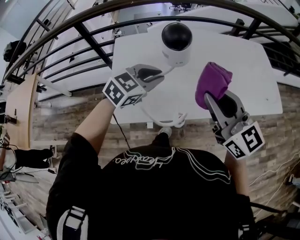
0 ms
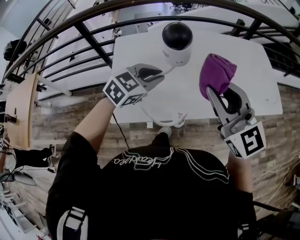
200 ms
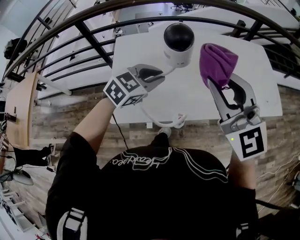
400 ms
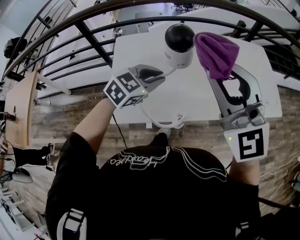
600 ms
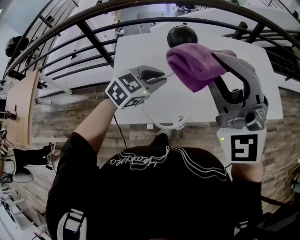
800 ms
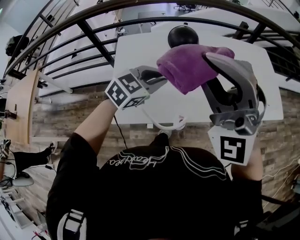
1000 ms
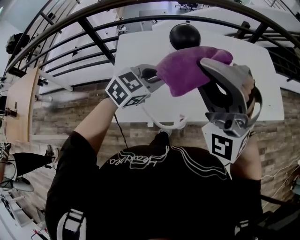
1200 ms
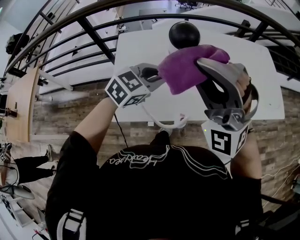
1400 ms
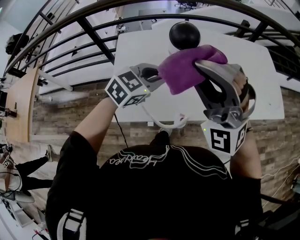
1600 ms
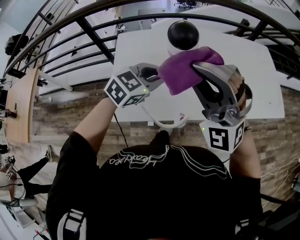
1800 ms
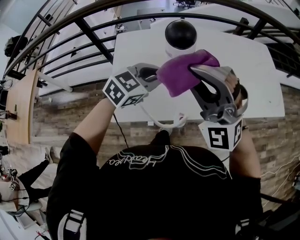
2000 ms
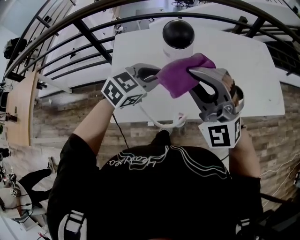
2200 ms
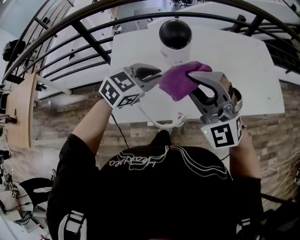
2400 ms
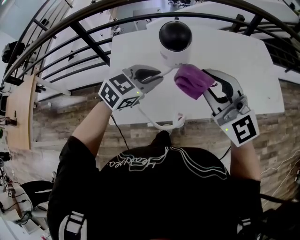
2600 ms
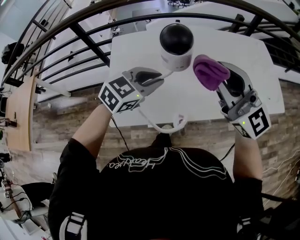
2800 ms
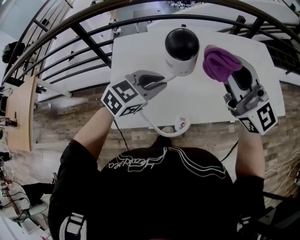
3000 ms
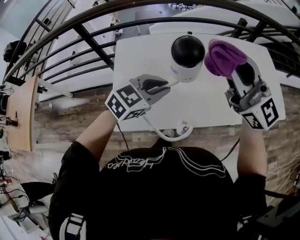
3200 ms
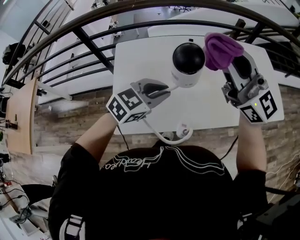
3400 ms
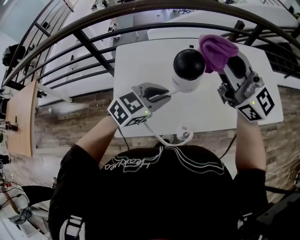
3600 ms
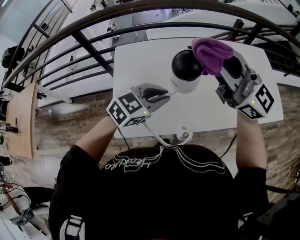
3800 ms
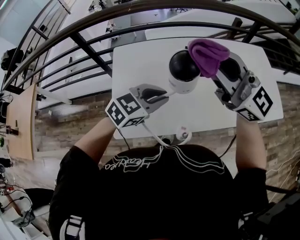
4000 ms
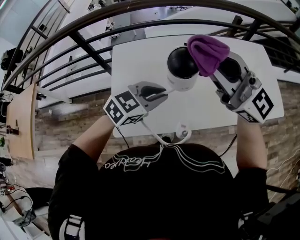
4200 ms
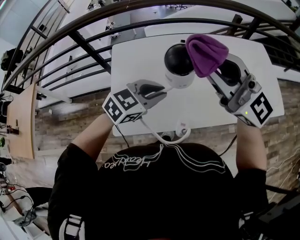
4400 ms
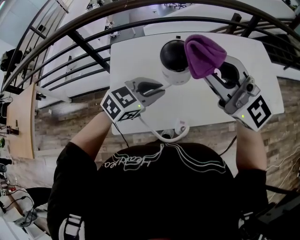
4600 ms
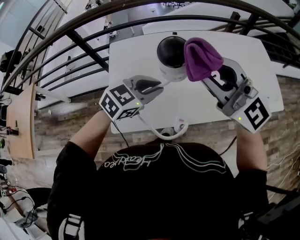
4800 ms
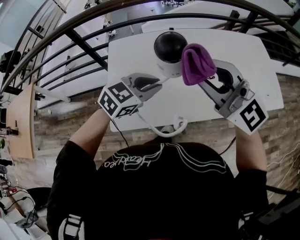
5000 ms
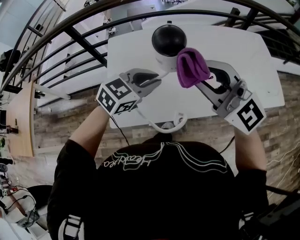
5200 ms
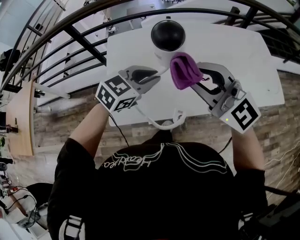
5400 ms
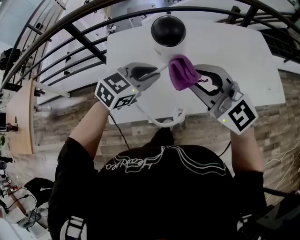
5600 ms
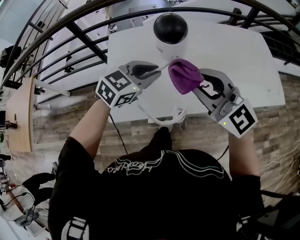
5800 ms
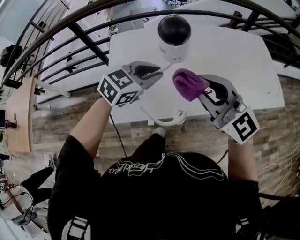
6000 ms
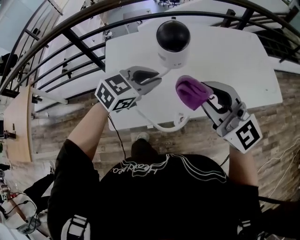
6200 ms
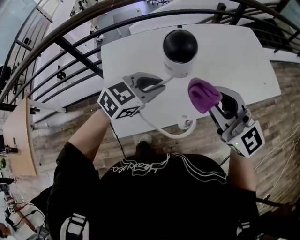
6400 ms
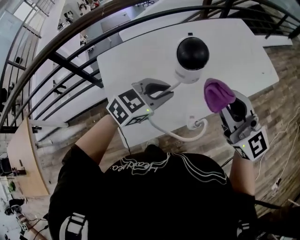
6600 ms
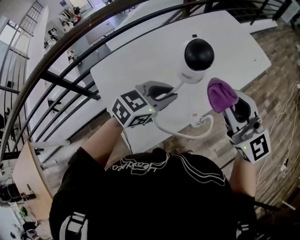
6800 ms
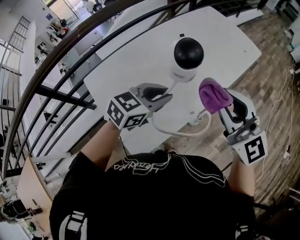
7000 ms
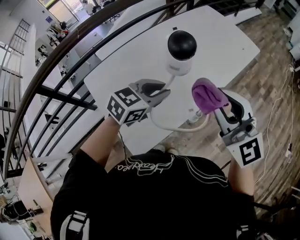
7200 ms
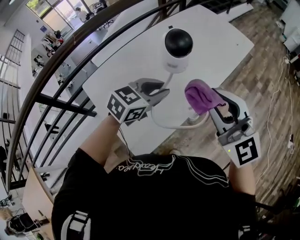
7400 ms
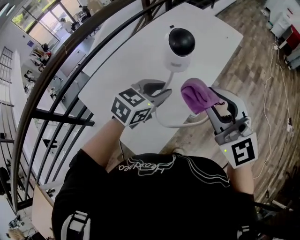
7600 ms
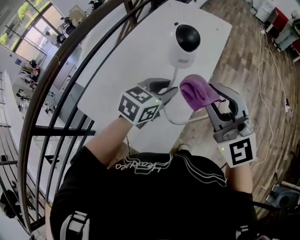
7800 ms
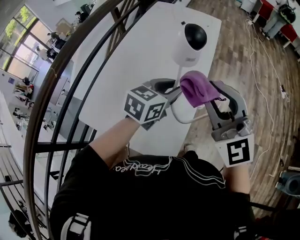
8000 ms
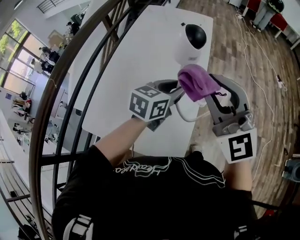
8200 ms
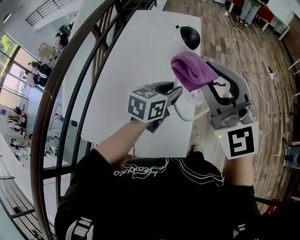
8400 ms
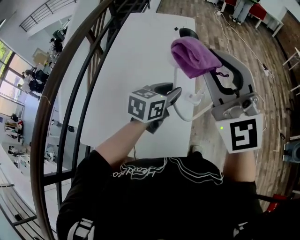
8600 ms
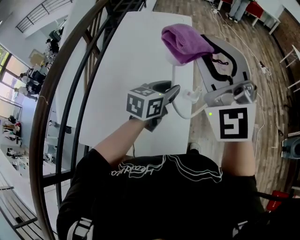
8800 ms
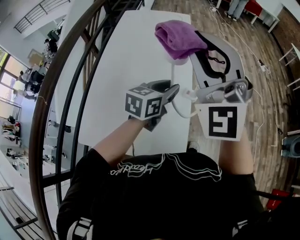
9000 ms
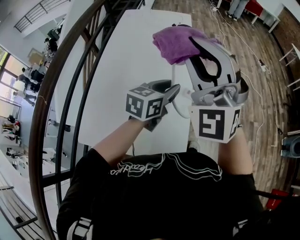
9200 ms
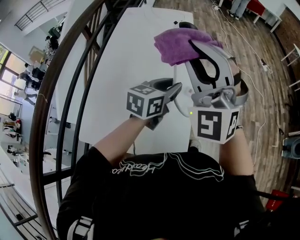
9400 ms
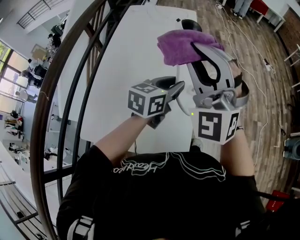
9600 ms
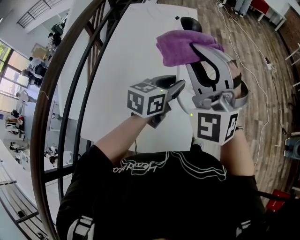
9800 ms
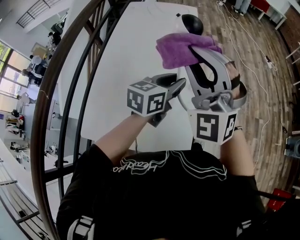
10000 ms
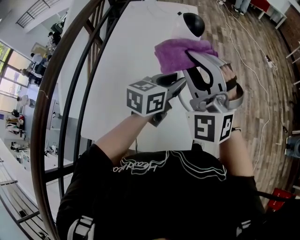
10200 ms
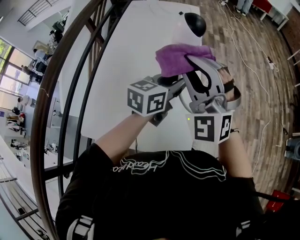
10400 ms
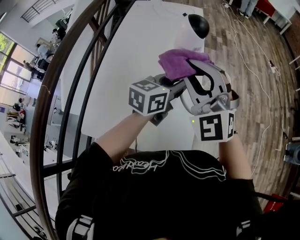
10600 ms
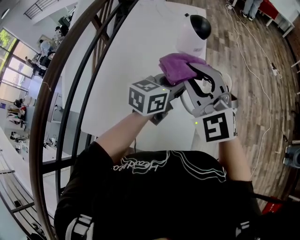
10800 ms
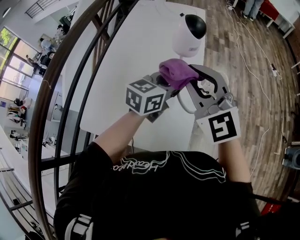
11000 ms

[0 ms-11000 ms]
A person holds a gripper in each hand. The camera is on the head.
0 ms to 1600 ms: The right gripper travels to the left and upward by some 10 cm, and twists about 70 degrees counterclockwise, seen from behind.
1600 ms to 3200 ms: The right gripper goes about 10 cm forward and to the right, reaches roughly 5 cm downward, then returns, and rolls clockwise, seen from behind, by about 60 degrees.
3200 ms to 4800 ms: The right gripper ends up some 5 cm from where it was.
4800 ms to 6200 ms: The right gripper moves downward and backward, approximately 10 cm.
6200 ms to 7800 ms: The right gripper moves roughly 10 cm, and turns by roughly 70 degrees. The left gripper turns by some 40 degrees.
7800 ms to 9400 ms: The right gripper changes place by some 10 cm, and turns by about 50 degrees.
9400 ms to 11000 ms: The right gripper goes approximately 10 cm downward, and changes its angle by approximately 40 degrees.

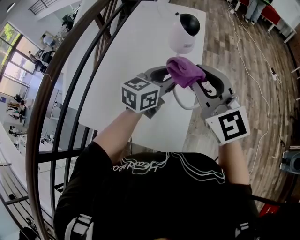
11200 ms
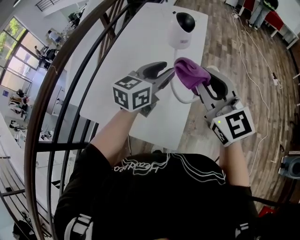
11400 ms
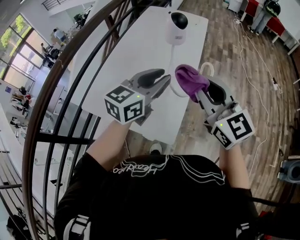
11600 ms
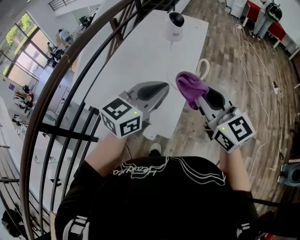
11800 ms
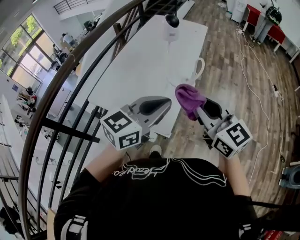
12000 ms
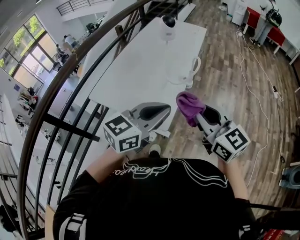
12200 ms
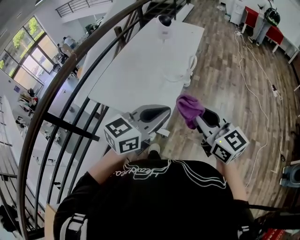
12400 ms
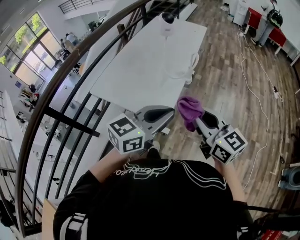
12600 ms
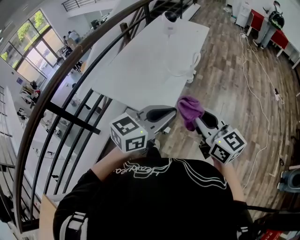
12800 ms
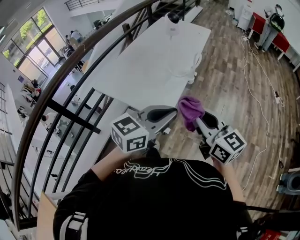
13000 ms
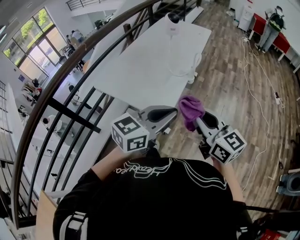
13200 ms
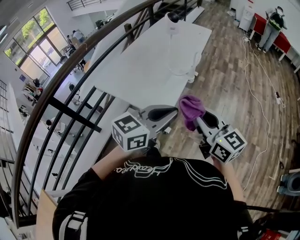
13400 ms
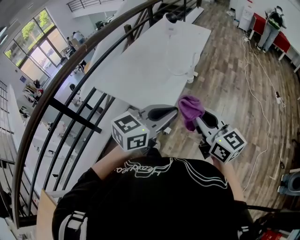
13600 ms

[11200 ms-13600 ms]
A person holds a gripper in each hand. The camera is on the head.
11200 ms to 12400 ms: The right gripper goes some 35 cm backward and to the right, and turns by about 30 degrees. The left gripper goes roughly 40 cm backward, and closes.
12400 ms to 13600 ms: The left gripper shifts by about 5 cm.

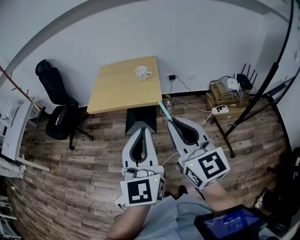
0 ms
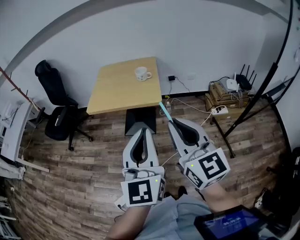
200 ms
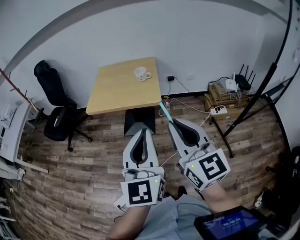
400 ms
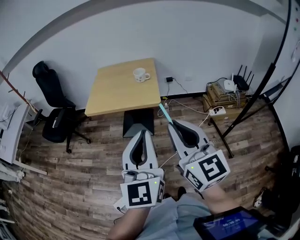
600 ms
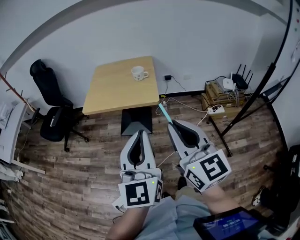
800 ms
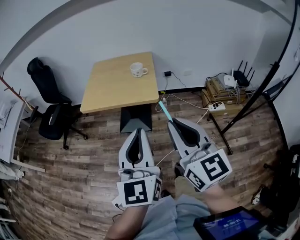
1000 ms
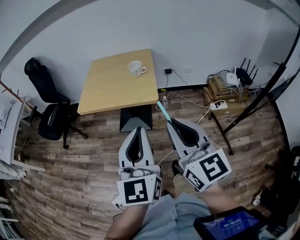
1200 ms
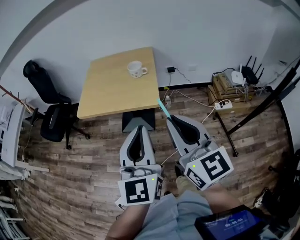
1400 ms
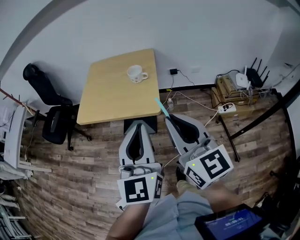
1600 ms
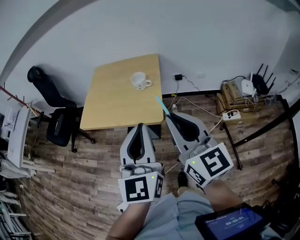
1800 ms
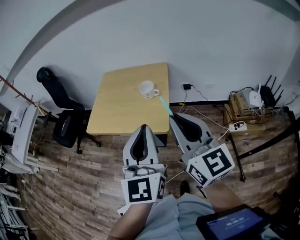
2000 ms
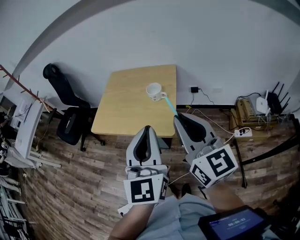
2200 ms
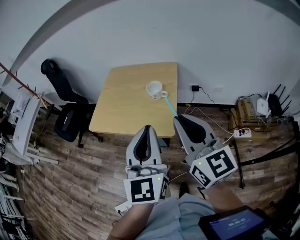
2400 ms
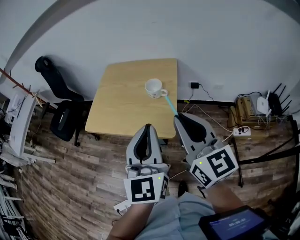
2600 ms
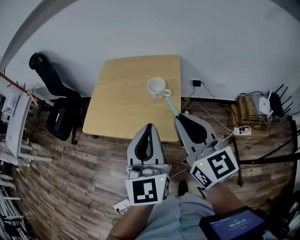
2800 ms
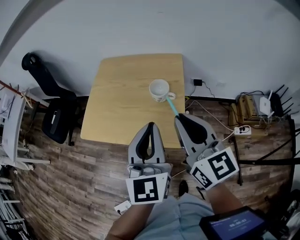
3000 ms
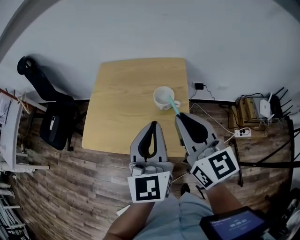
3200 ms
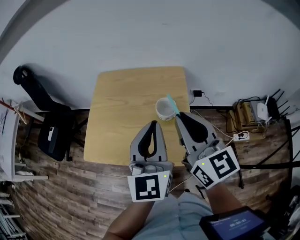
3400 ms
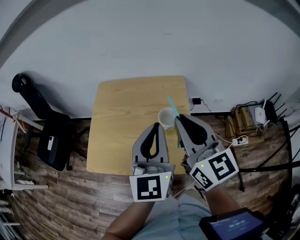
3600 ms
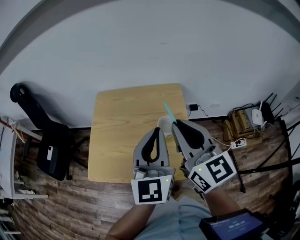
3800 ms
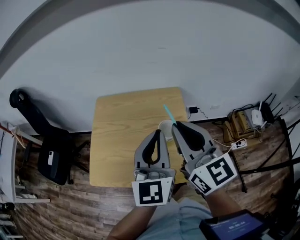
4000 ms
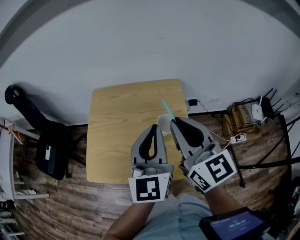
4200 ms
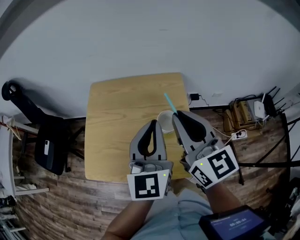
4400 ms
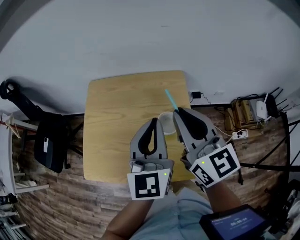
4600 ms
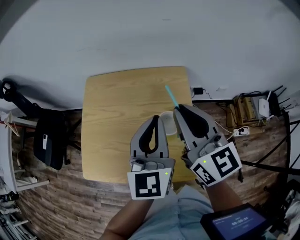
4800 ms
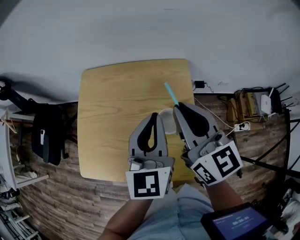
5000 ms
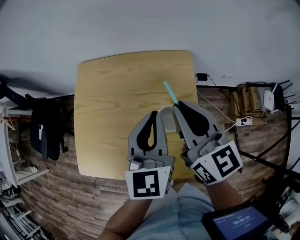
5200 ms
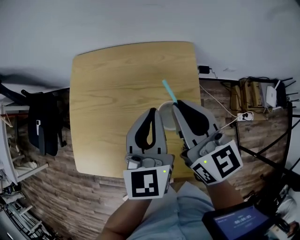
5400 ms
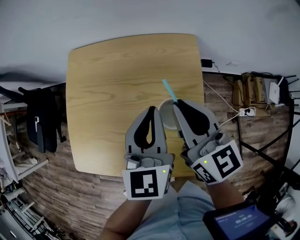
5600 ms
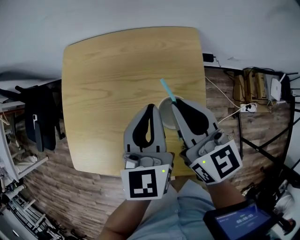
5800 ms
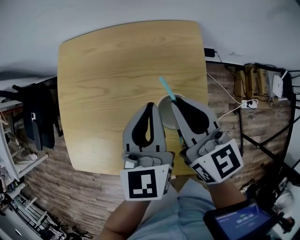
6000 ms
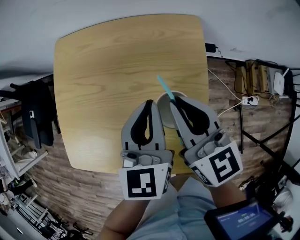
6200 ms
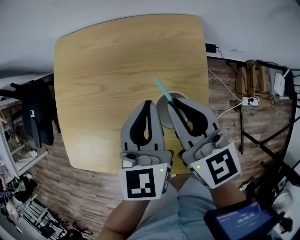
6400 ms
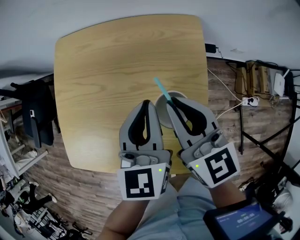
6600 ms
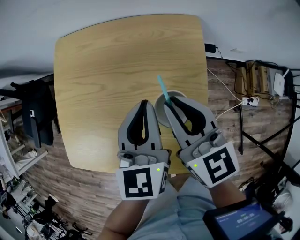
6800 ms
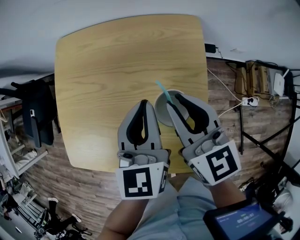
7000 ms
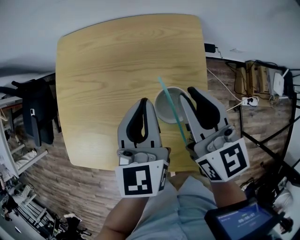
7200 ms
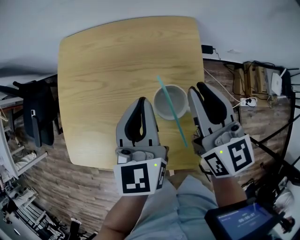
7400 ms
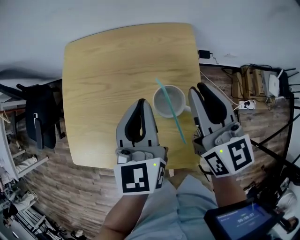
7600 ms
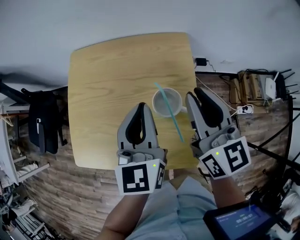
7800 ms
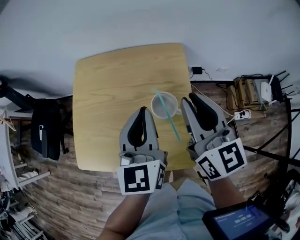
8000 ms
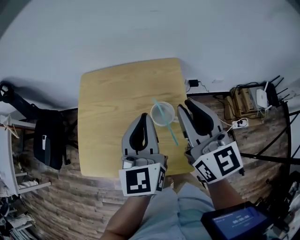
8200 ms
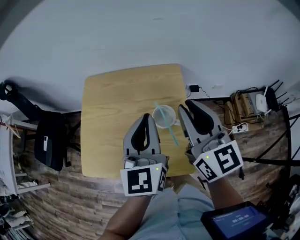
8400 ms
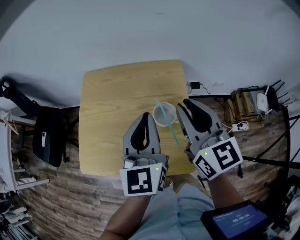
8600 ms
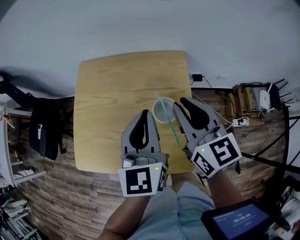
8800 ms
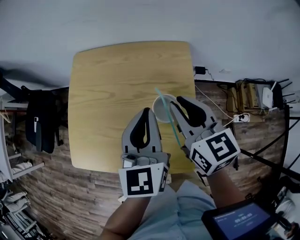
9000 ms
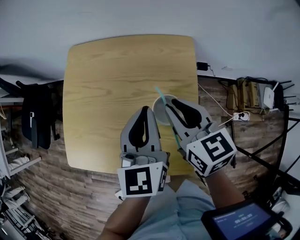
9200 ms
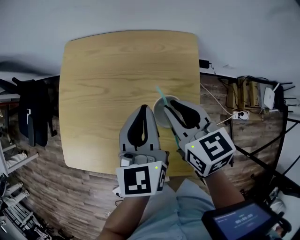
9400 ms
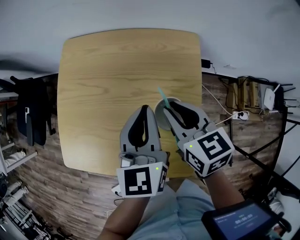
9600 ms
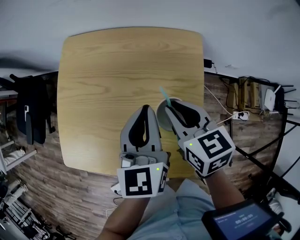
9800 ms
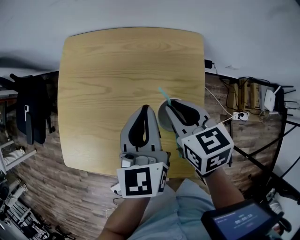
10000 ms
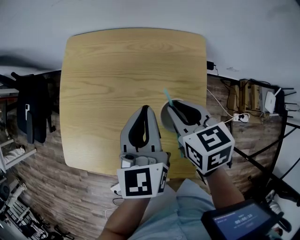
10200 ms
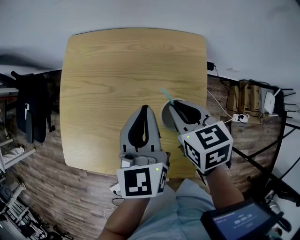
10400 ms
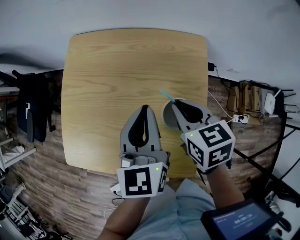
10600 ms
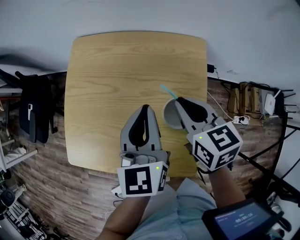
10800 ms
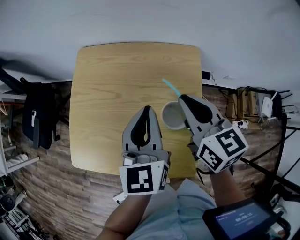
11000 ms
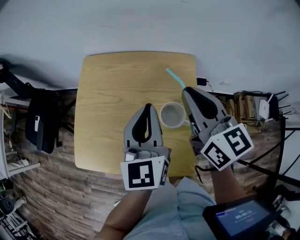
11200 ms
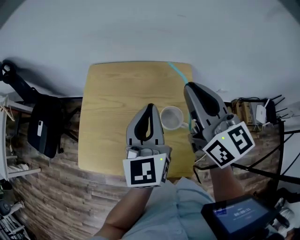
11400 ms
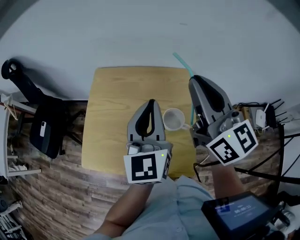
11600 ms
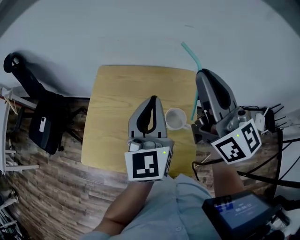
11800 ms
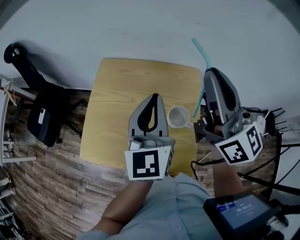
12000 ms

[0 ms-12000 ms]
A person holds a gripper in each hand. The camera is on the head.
0 ms to 1600 ms: The grippers both shift forward by roughly 20 cm.
1600 ms to 3000 ms: Both grippers travel together forward, roughly 25 cm.
3000 ms to 4400 ms: Both grippers travel together forward, some 20 cm.
4400 ms to 6000 ms: Both grippers move downward and forward, some 20 cm. The left gripper turns by approximately 20 degrees.
6000 ms to 7600 ms: The right gripper is displaced to the right by about 5 cm.
7600 ms to 9000 ms: The right gripper travels upward and back again, approximately 10 cm each way. Meanwhile the left gripper travels upward and back again, roughly 10 cm each way.
9000 ms to 10400 ms: The right gripper is displaced downward by about 10 cm, and turns by approximately 30 degrees, while the left gripper heads downward, covering some 5 cm.
10400 ms to 12000 ms: The left gripper heads upward, covering some 15 cm. Meanwhile the right gripper travels upward by roughly 35 cm, and tilts its fingers approximately 60 degrees upward.
